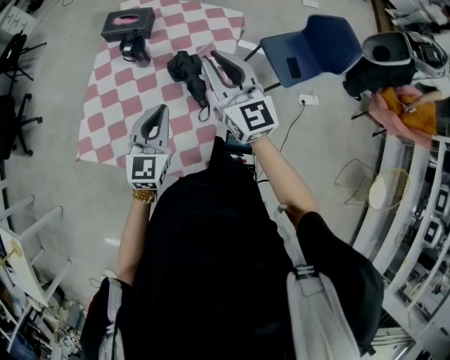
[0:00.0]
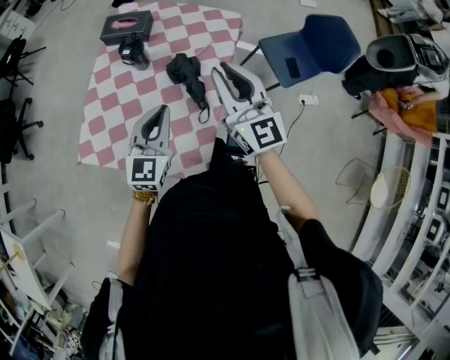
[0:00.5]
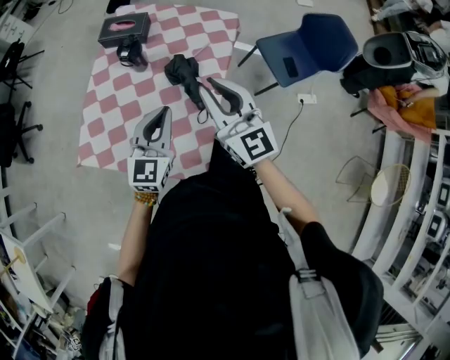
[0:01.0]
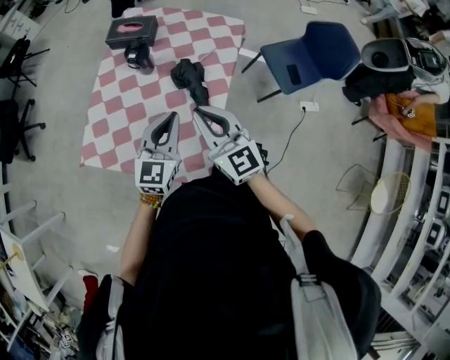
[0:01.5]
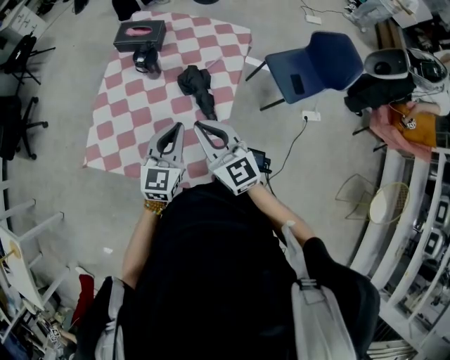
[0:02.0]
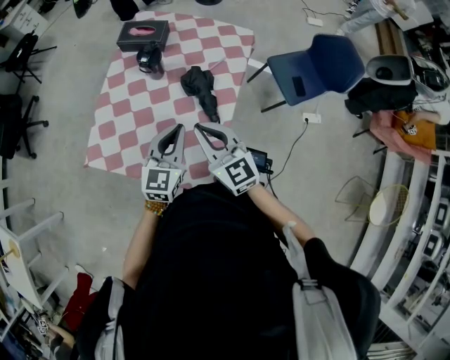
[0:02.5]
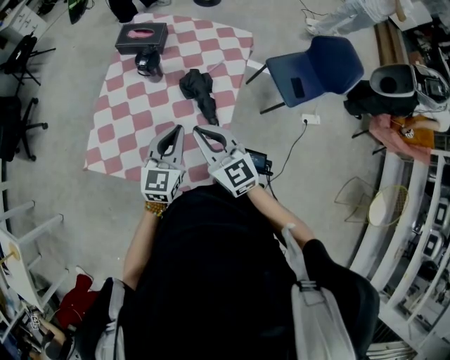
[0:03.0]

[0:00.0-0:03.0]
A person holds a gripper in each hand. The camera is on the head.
0:00.0 to 0:01.5: The right gripper goes roughly 10 cm backward and downward.
0:01.5 to 0:03.0: The right gripper shifts by approximately 5 cm.

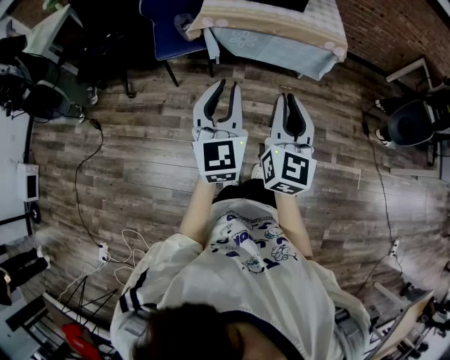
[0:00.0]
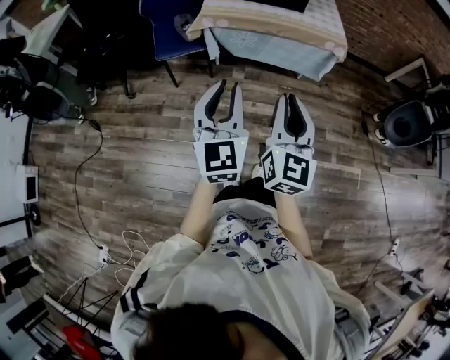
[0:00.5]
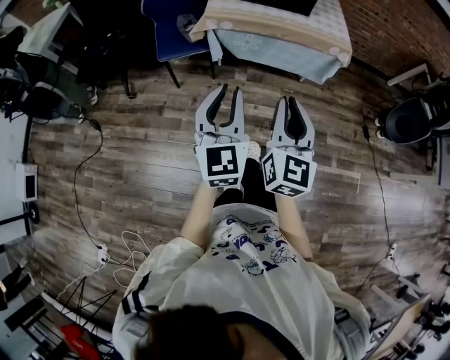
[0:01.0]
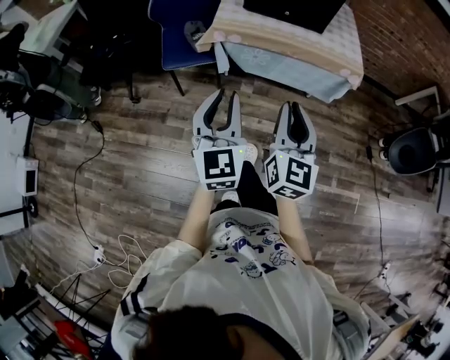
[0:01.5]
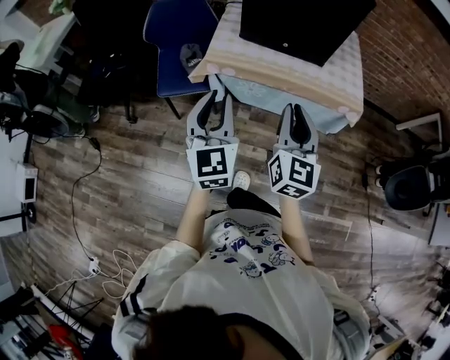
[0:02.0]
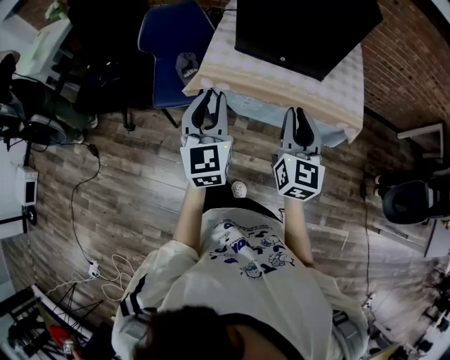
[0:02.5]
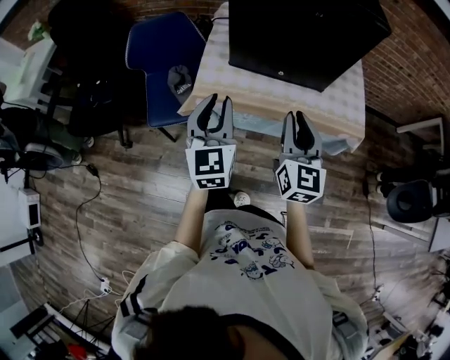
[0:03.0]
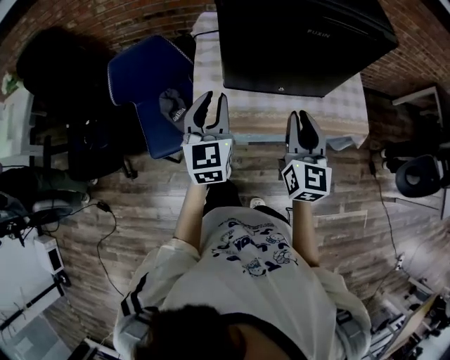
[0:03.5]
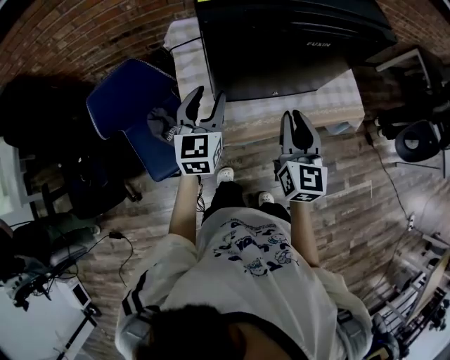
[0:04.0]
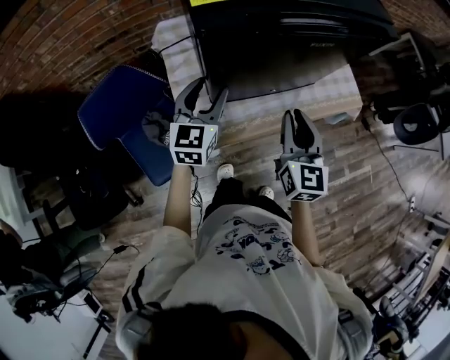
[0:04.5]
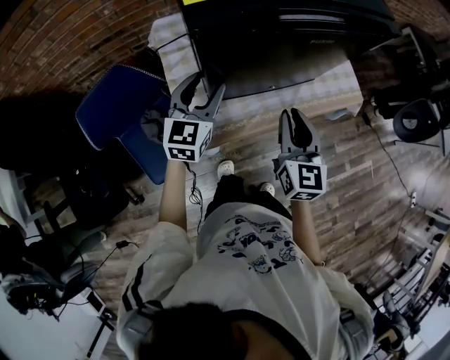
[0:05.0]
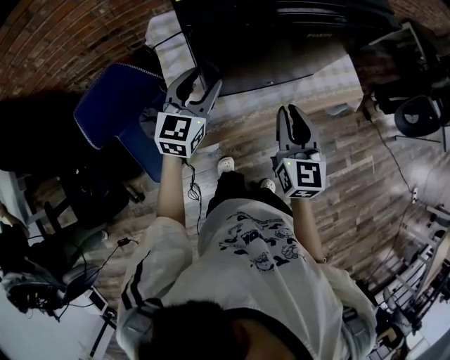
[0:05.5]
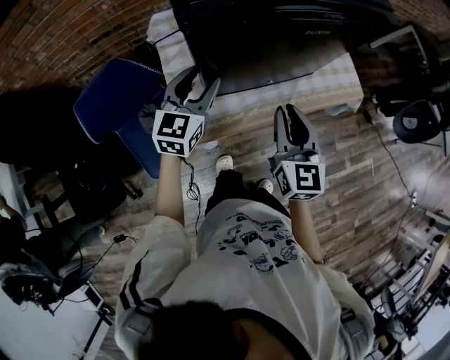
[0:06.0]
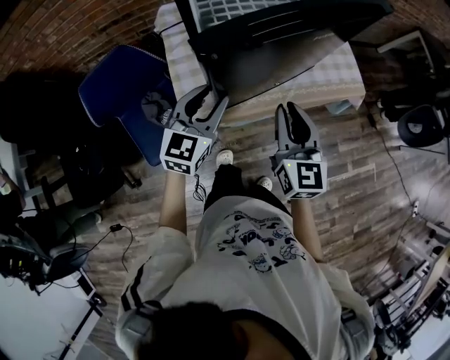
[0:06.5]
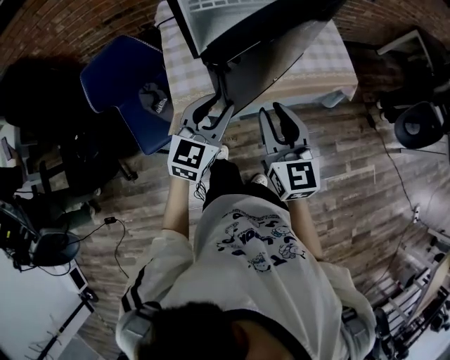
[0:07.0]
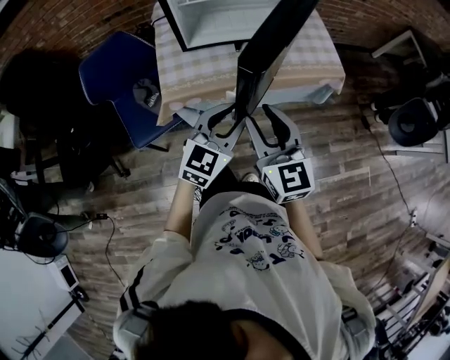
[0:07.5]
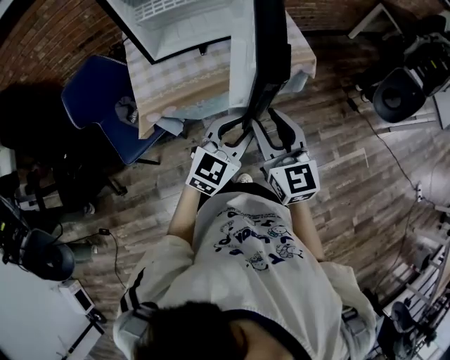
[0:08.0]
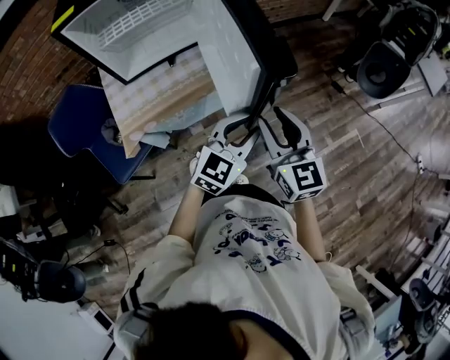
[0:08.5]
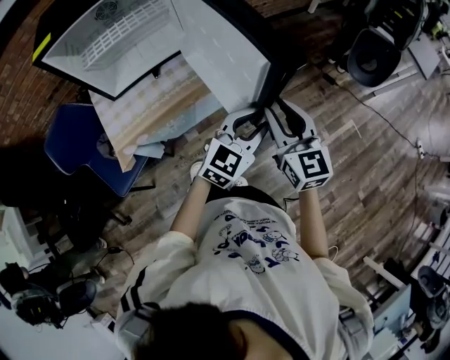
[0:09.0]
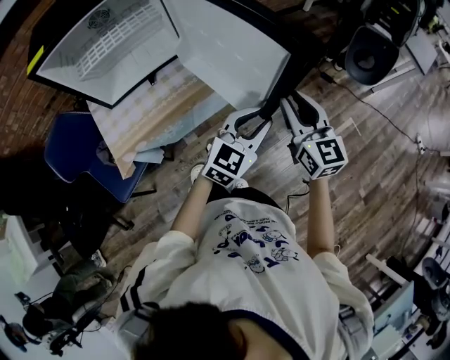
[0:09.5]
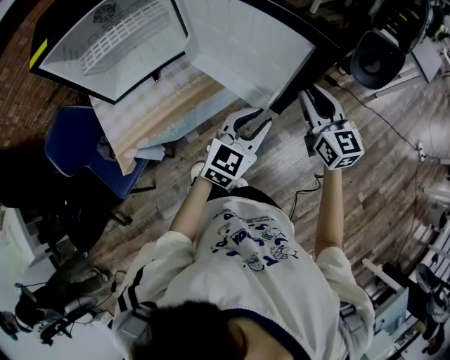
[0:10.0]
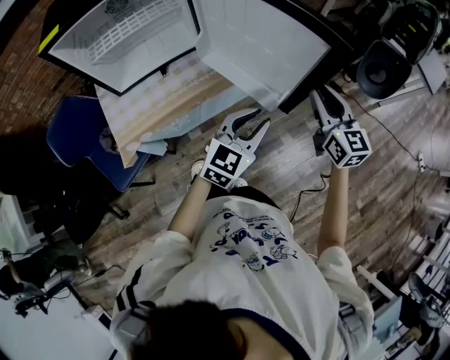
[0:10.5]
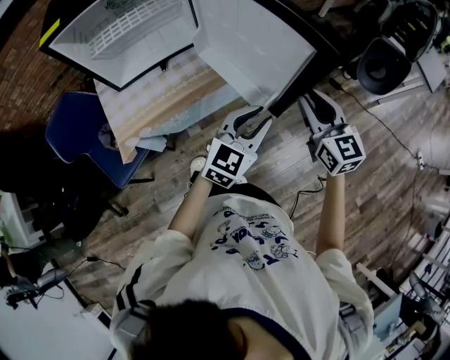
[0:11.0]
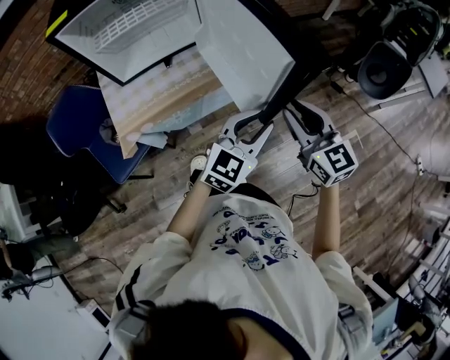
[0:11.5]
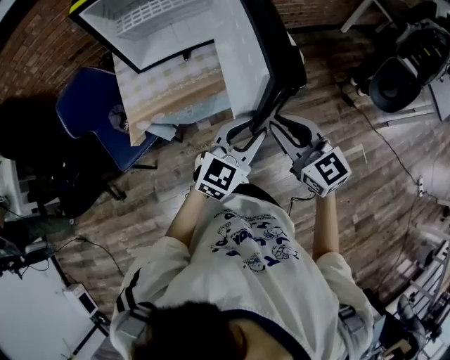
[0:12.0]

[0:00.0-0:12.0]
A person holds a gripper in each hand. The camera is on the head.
0:00.0 to 0:02.0: The two grippers go approximately 30 cm forward.
0:02.0 to 0:04.0: The right gripper shifts by roughly 35 cm. The left gripper shifts by some 50 cm, swivels some 30 degrees, and opens up.
0:04.0 to 0:06.0: There are only small adjustments of the grippers.
0:06.0 to 0:08.0: The right gripper heads backward and to the right, covering some 30 cm, and opens up; the left gripper travels to the right and backward by roughly 50 cm, turns by roughly 20 degrees, and closes.
0:08.0 to 0:10.0: The left gripper heads to the right and forward, covering some 15 cm. Meanwhile the right gripper goes approximately 25 cm to the right and forward.
0:10.0 to 0:12.0: The left gripper shifts some 10 cm to the left and backward. Meanwhile the right gripper shifts roughly 20 cm to the left and backward, and turns by roughly 30 degrees.

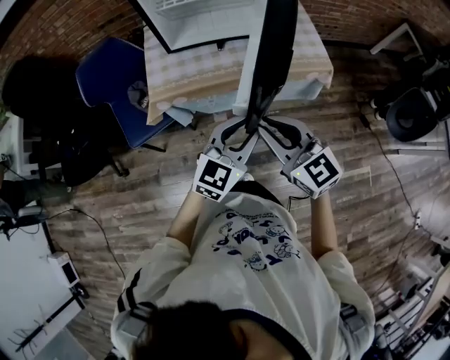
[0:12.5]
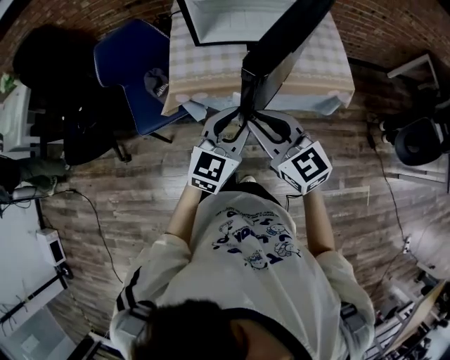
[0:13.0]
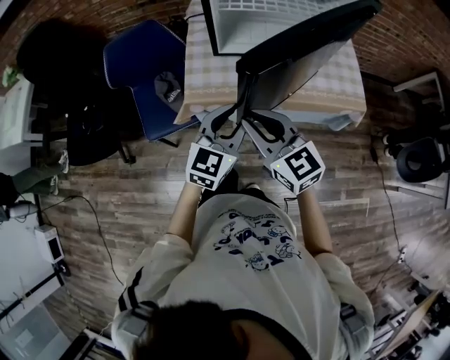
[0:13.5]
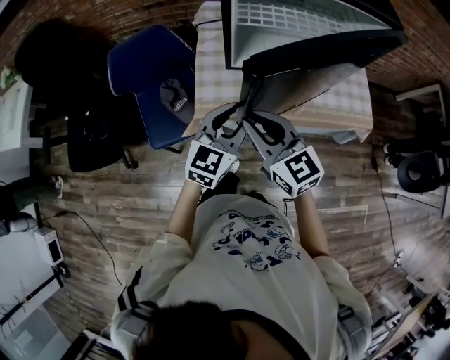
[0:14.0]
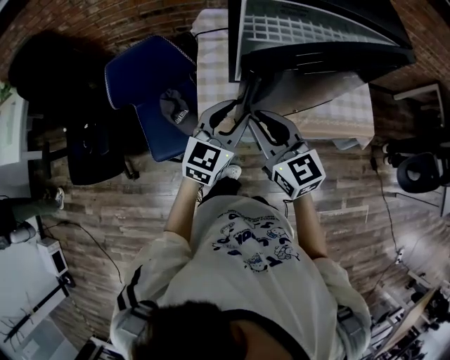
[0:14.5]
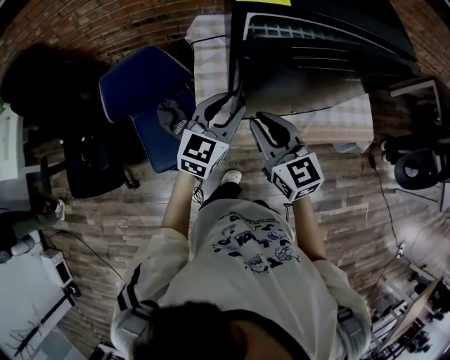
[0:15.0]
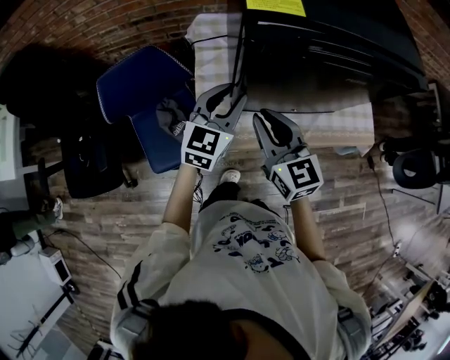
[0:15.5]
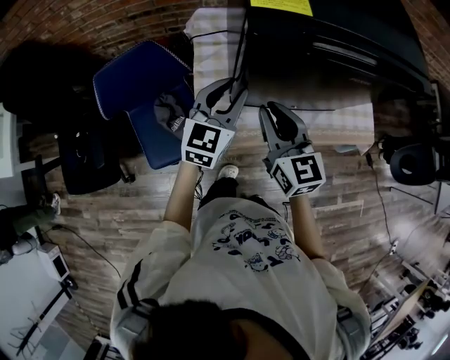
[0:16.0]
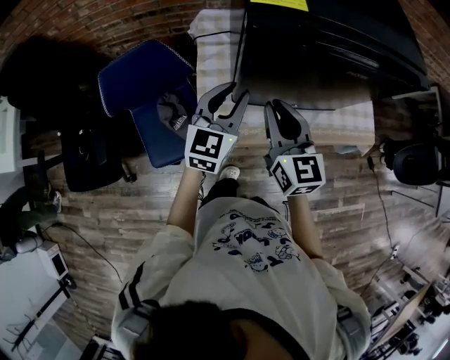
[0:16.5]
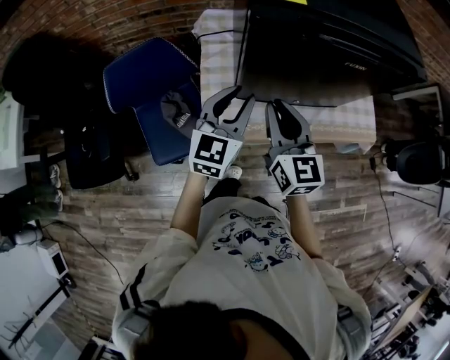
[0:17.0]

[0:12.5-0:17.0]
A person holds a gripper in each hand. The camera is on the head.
0:12.5 to 0:14.5: The two grippers go about 35 cm forward and to the left.
0:14.5 to 0:17.0: Both grippers move forward, roughly 5 cm. The right gripper rotates about 20 degrees.

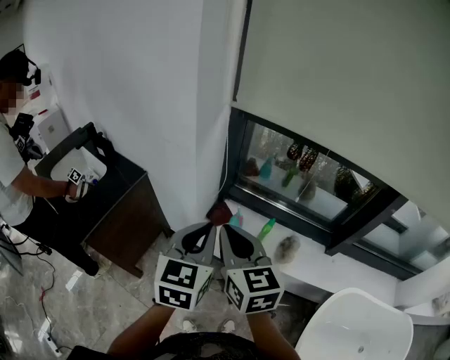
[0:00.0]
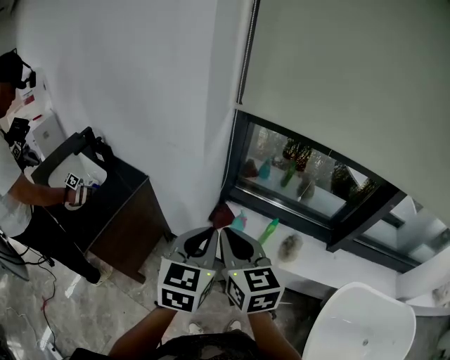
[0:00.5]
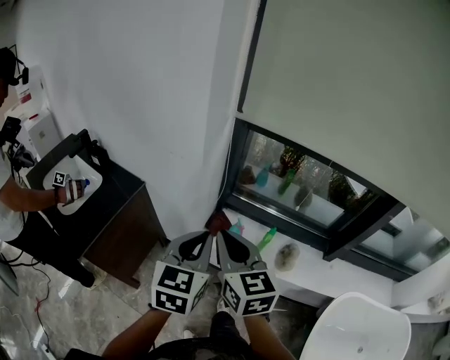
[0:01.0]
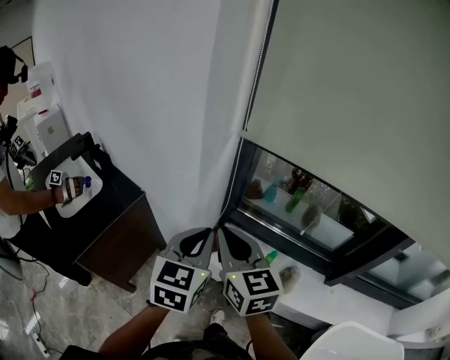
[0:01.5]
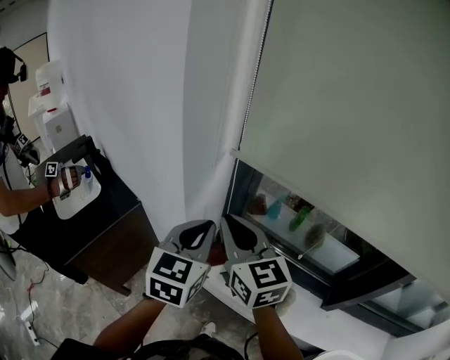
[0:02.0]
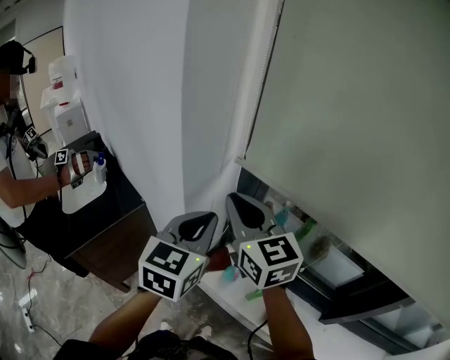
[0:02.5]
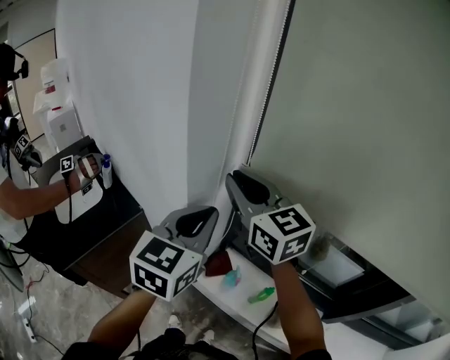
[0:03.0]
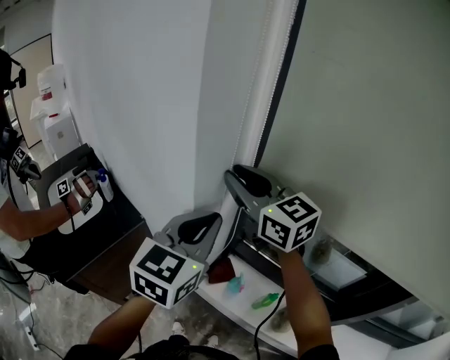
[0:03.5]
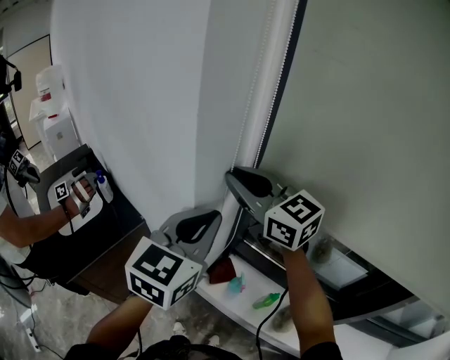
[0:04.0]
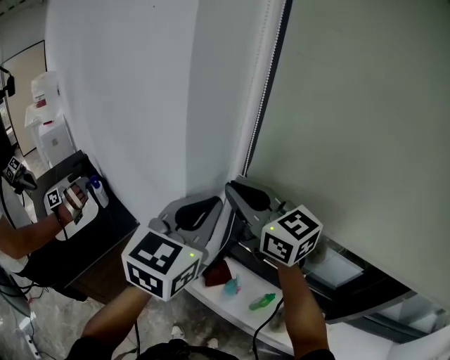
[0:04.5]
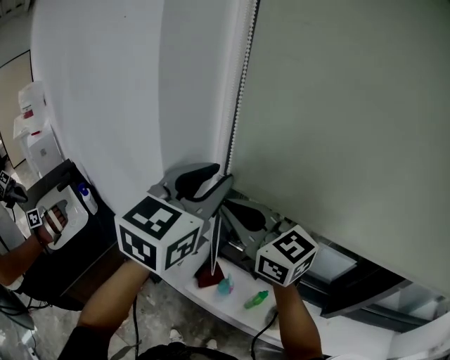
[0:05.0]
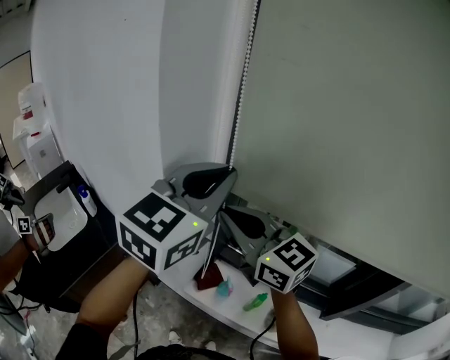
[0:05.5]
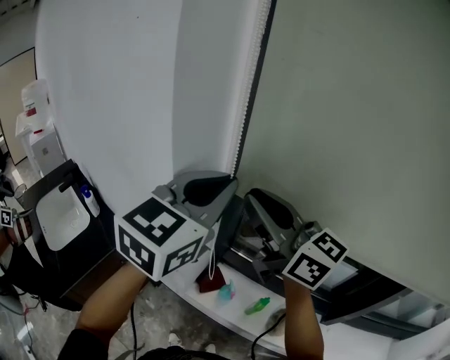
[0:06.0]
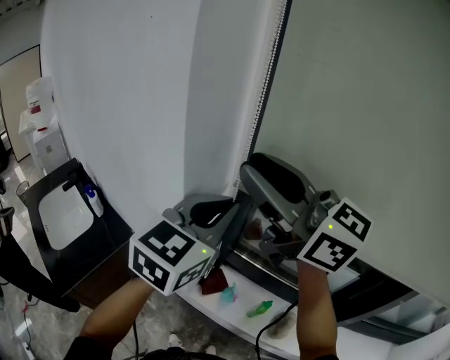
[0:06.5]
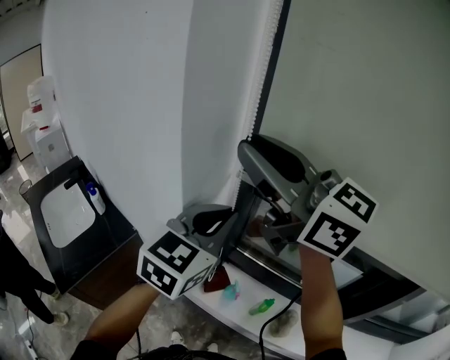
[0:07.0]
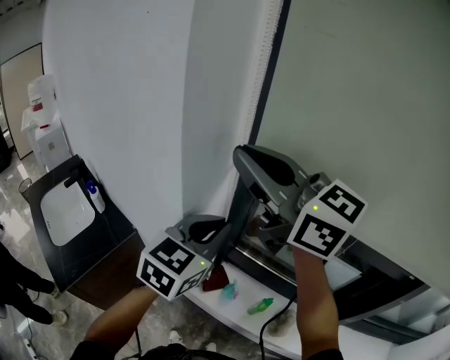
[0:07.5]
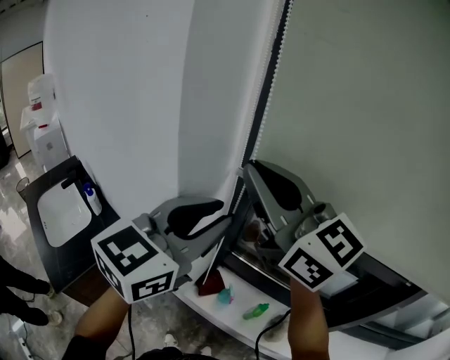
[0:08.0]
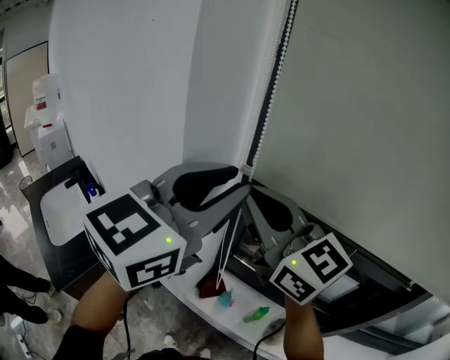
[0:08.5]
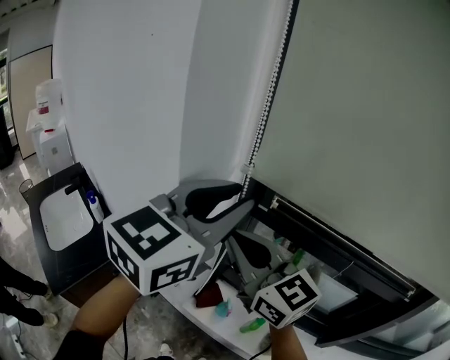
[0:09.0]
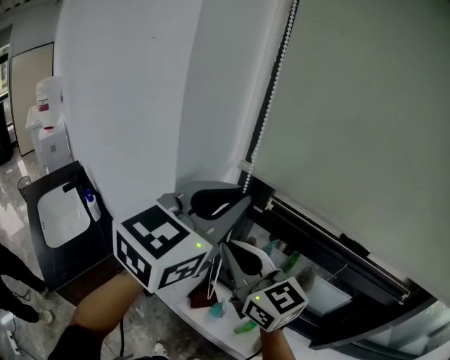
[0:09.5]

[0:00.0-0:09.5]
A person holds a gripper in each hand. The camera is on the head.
0:00.0 to 0:02.0: The grippers both shift forward by about 20 cm.
0:02.0 to 0:04.0: The right gripper moves forward and upward, some 15 cm, and rotates about 20 degrees. Meanwhile the left gripper heads upward and forward, covering about 10 cm.
0:04.0 to 0:05.5: The right gripper heads backward, covering some 10 cm. The left gripper goes roughly 15 cm upward and to the right, and opens, then closes again.
0:05.5 to 0:07.5: The left gripper is displaced downward by approximately 15 cm. Meanwhile the right gripper goes approximately 15 cm upward.
0:07.5 to 0:09.5: The right gripper heads downward, covering roughly 15 cm. The left gripper heads upward, covering roughly 15 cm.
